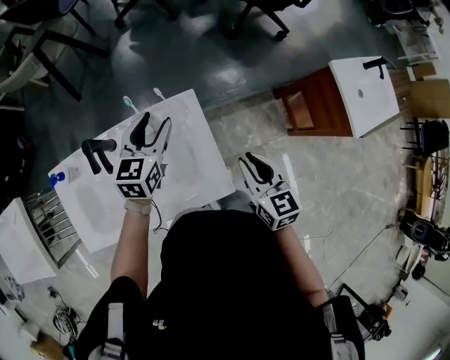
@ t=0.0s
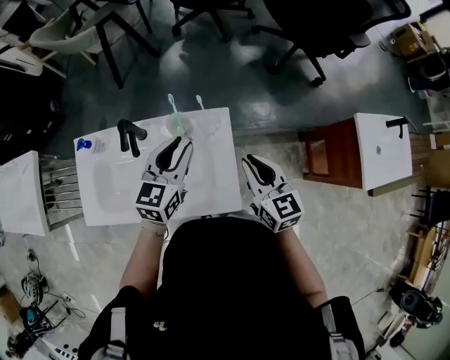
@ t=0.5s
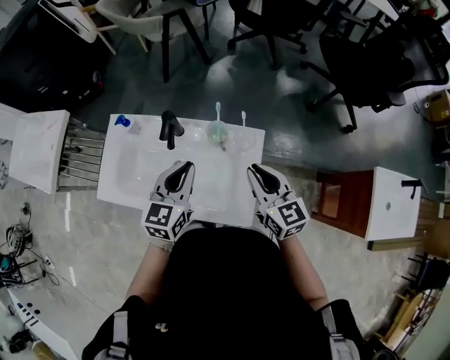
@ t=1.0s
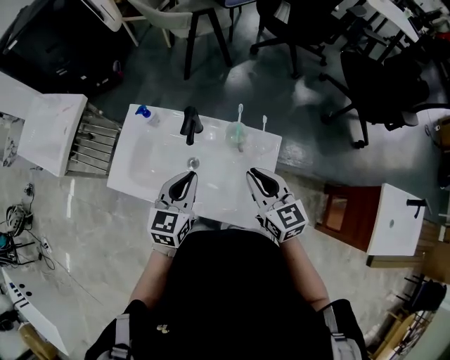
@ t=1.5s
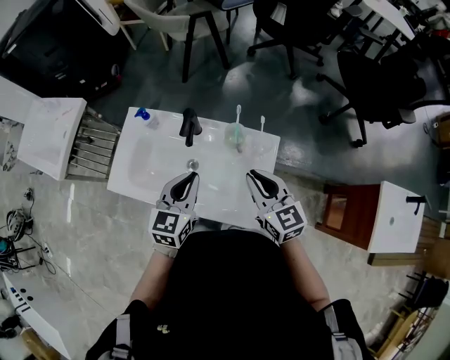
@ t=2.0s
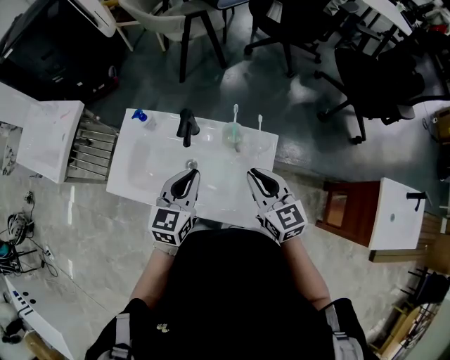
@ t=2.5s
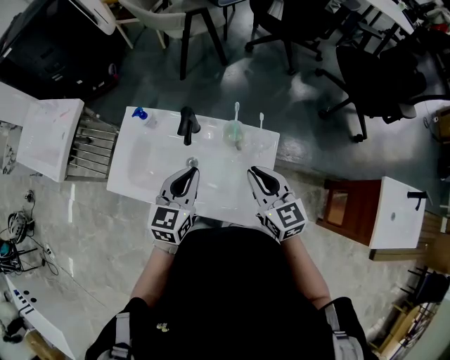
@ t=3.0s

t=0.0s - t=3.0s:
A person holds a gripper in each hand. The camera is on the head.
t=0.0s - t=1.5s: The right gripper changes place by approximately 20 cm, and changes its angle by some 40 degrees. Meanwhile the left gripper changes place by approximately 20 cm, swivels some 30 degrees, and closes its fingers.
t=1.5s - t=3.0s: The grippers stay close to where they were, moving slightly.

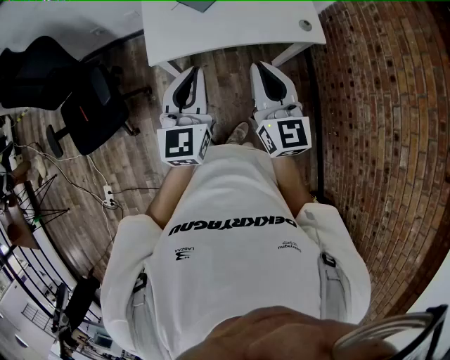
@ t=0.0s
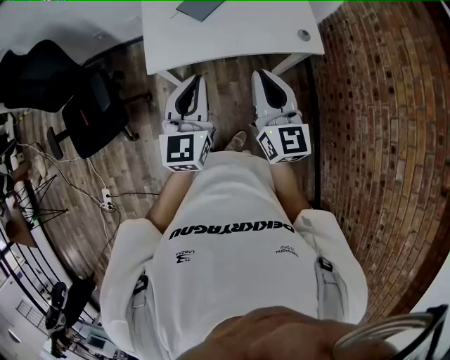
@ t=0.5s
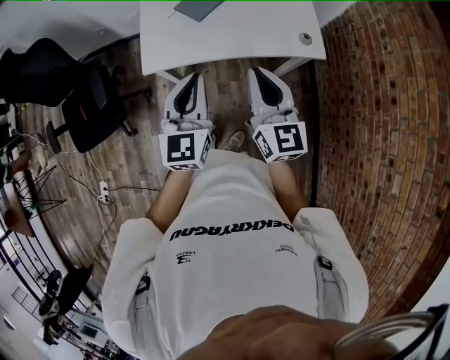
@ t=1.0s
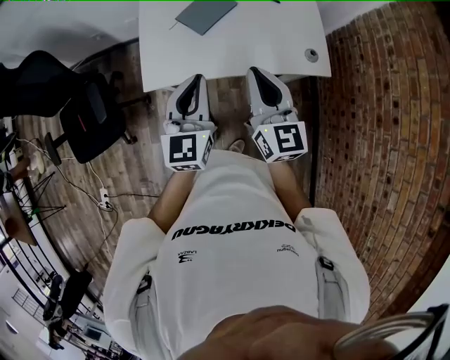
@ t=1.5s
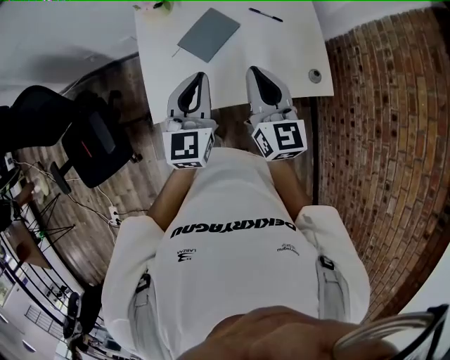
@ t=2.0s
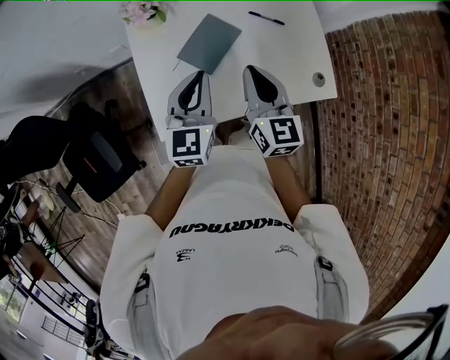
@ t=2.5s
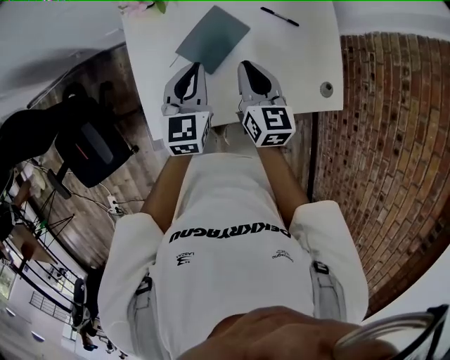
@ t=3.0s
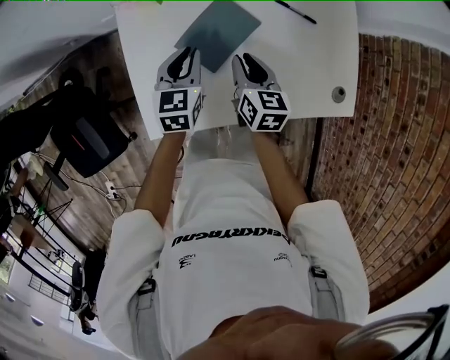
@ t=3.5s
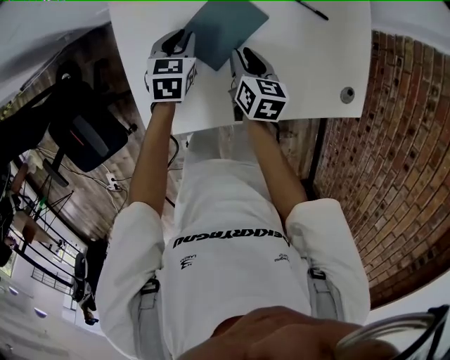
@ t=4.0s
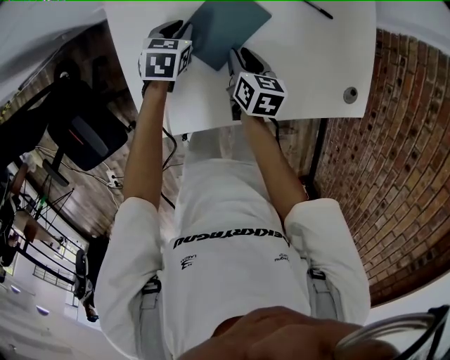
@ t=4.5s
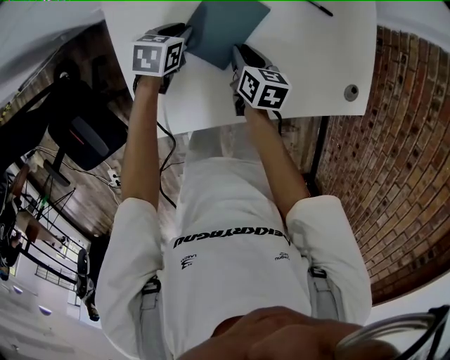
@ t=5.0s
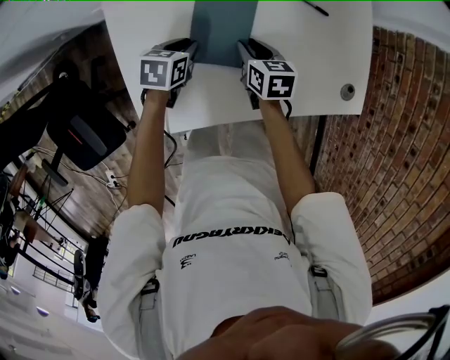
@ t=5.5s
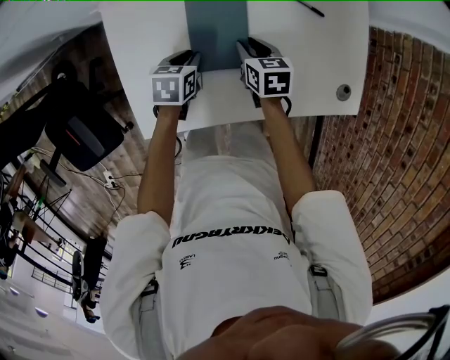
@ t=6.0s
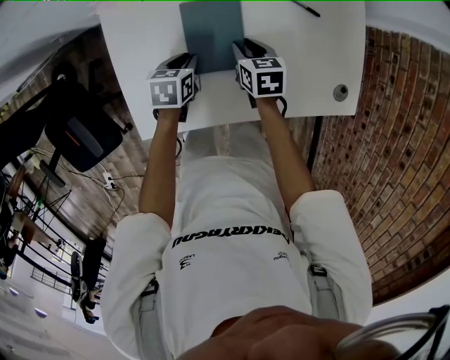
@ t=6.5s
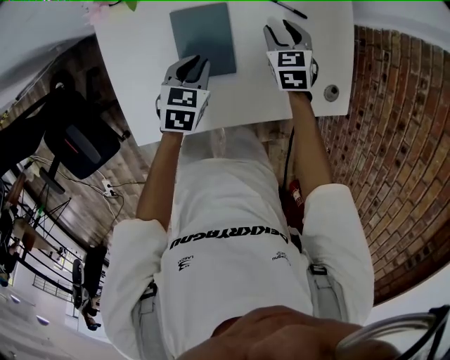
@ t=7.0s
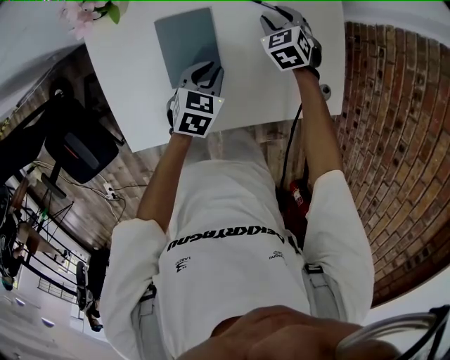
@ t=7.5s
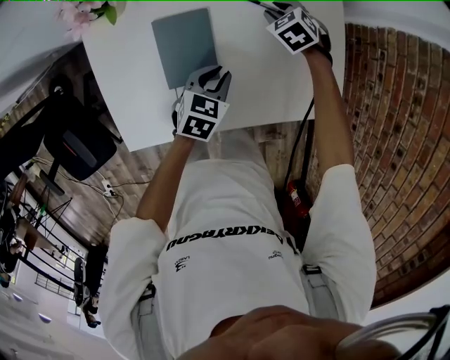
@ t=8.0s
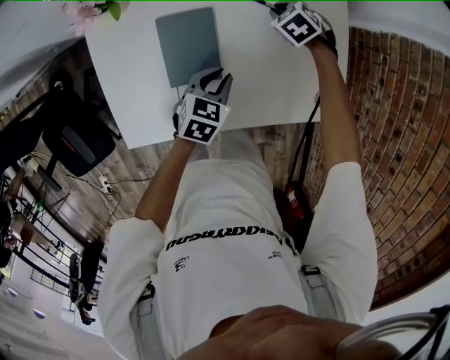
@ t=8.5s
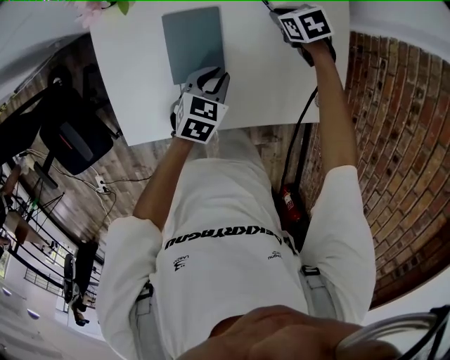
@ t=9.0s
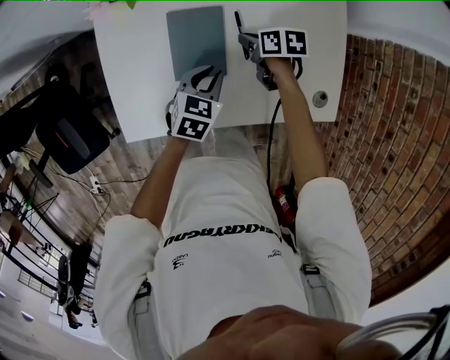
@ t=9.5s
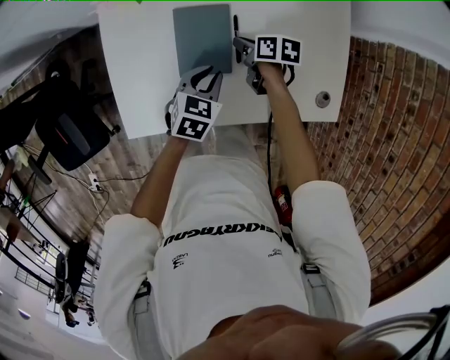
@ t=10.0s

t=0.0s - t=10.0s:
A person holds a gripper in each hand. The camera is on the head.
t=0.0s - t=2.0s: The two grippers go approximately 30 cm forward.
t=2.0s - t=4.0s: Both grippers travel together downward and forward, some 40 cm. The left gripper tips its fingers downward by some 40 degrees. Meanwhile the right gripper tilts its fingers some 40 degrees downward, and opens up.
t=4.0s - t=6.0s: The right gripper moves approximately 5 cm; the left gripper is displaced backward by about 5 cm, and changes its angle by some 20 degrees.
t=6.0s - t=8.0s: The right gripper goes about 20 cm forward and to the right, and rolls counterclockwise, seen from behind, by approximately 40 degrees, while the left gripper moves to the right, about 15 cm, and swivels about 20 degrees.
t=8.0s - t=10.0s: The left gripper shifts roughly 5 cm to the left. Meanwhile the right gripper is displaced to the left and backward by roughly 15 cm, and rotates around the line of its fingers by some 60 degrees, clockwise from behind.

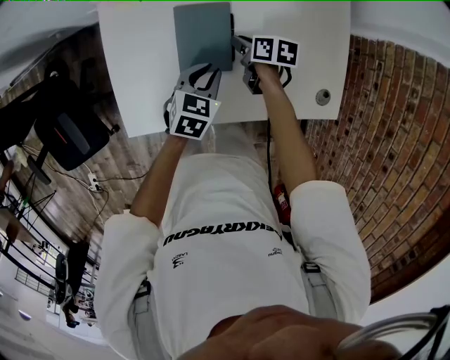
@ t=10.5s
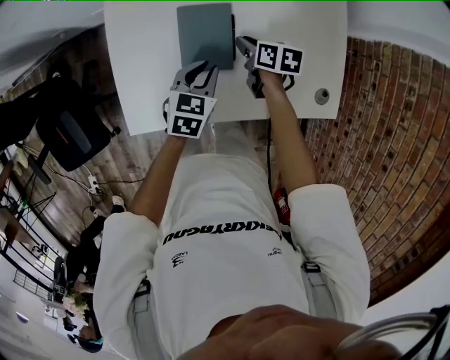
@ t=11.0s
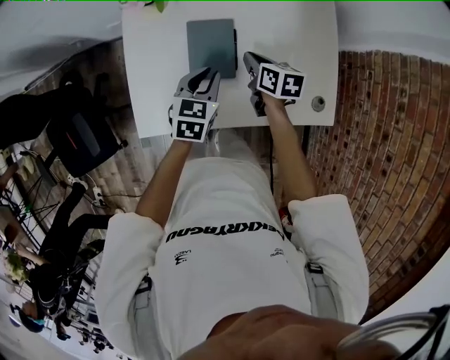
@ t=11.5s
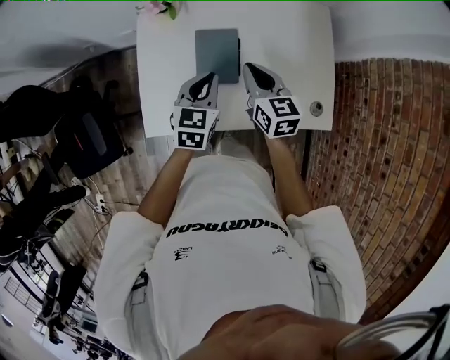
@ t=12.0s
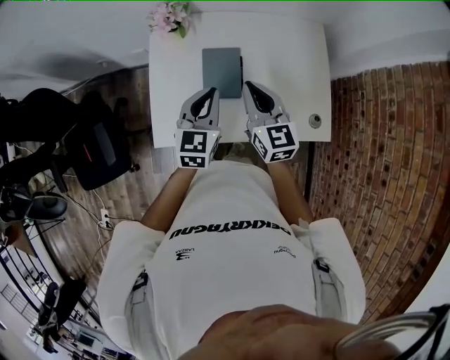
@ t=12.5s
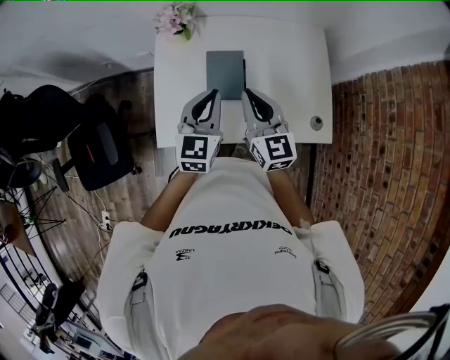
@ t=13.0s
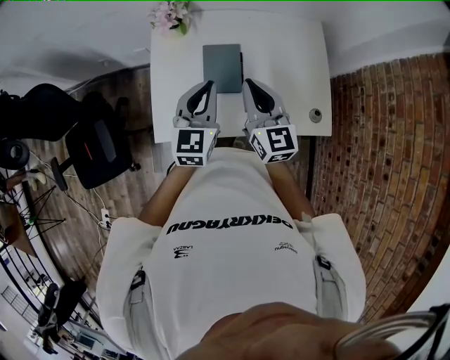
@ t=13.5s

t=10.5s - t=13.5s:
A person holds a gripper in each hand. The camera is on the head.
t=10.5s - t=12.0s: The left gripper travels upward by about 15 cm, and turns by approximately 20 degrees, while the right gripper heads upward, covering about 25 cm, and turns by about 50 degrees.
t=12.0s - t=13.5s: The left gripper shifts about 10 cm upward. Meanwhile the right gripper moves upward and backward, some 15 cm, and changes its angle by approximately 20 degrees.

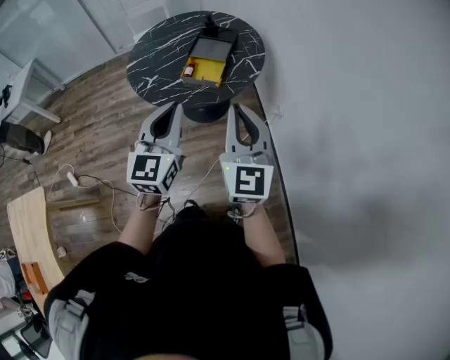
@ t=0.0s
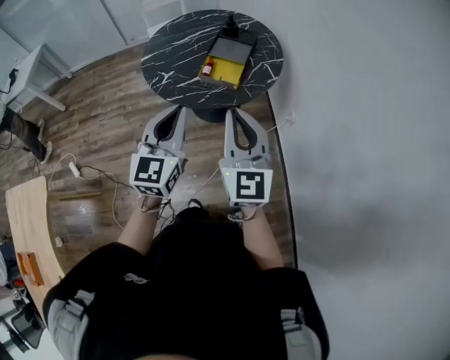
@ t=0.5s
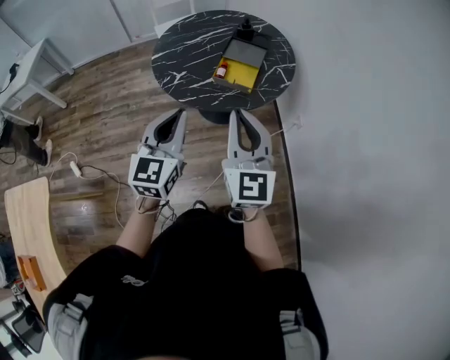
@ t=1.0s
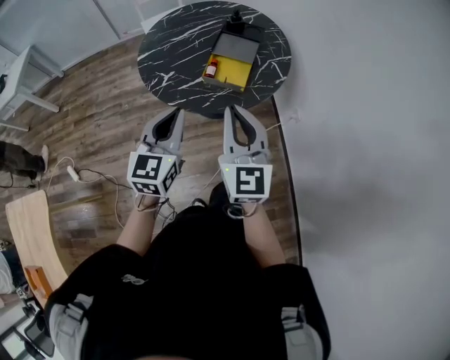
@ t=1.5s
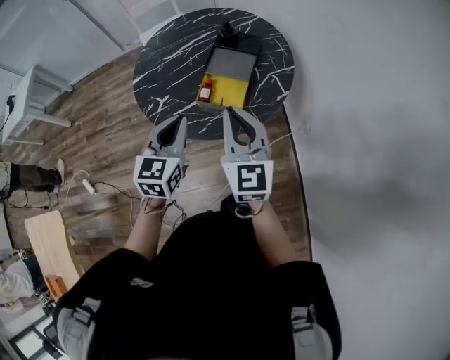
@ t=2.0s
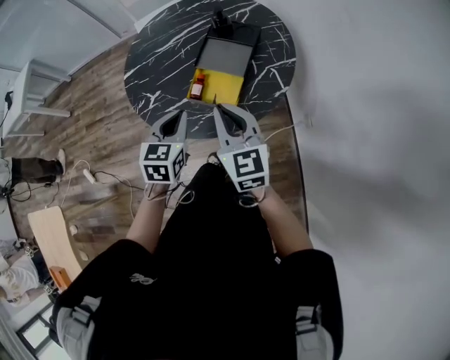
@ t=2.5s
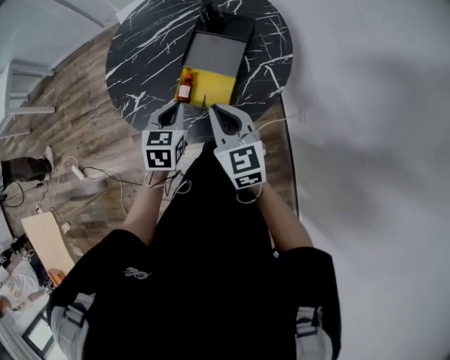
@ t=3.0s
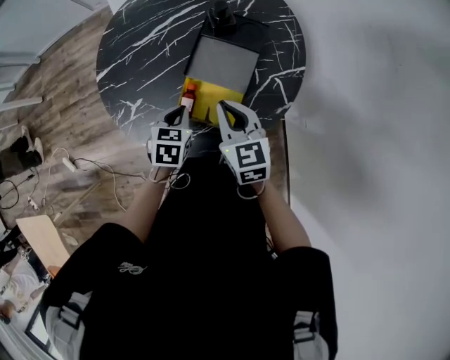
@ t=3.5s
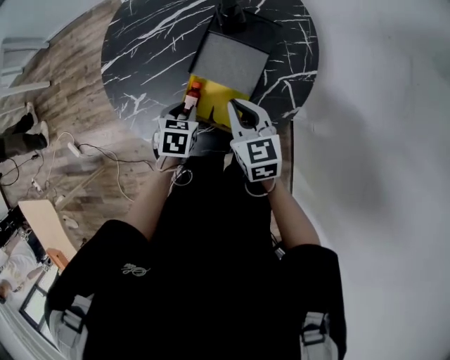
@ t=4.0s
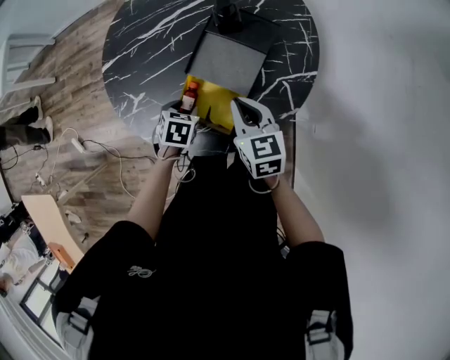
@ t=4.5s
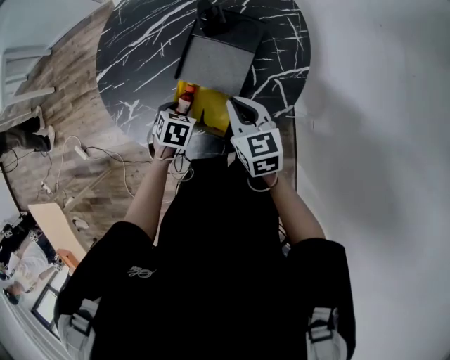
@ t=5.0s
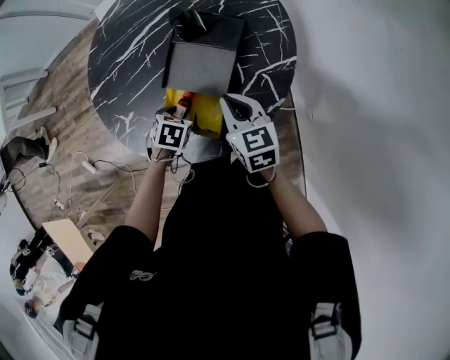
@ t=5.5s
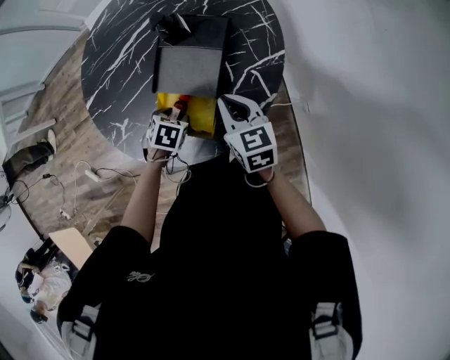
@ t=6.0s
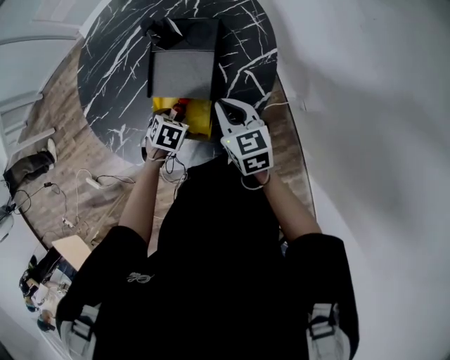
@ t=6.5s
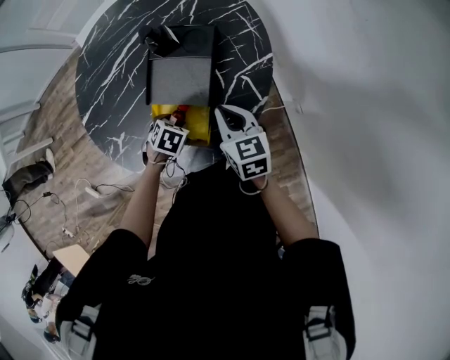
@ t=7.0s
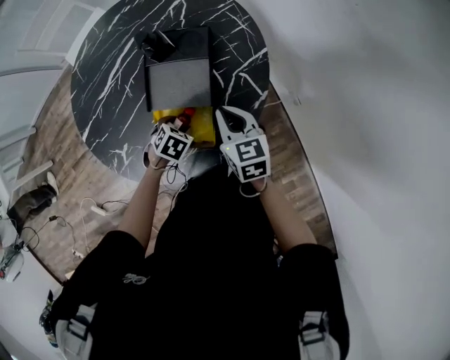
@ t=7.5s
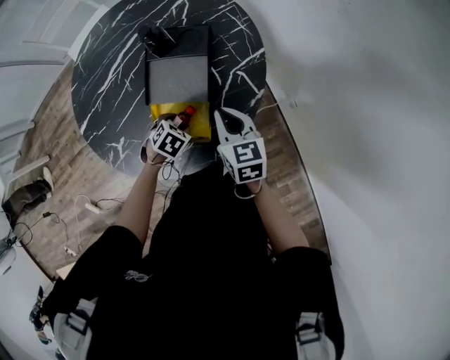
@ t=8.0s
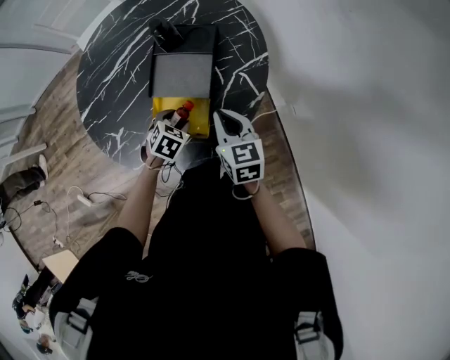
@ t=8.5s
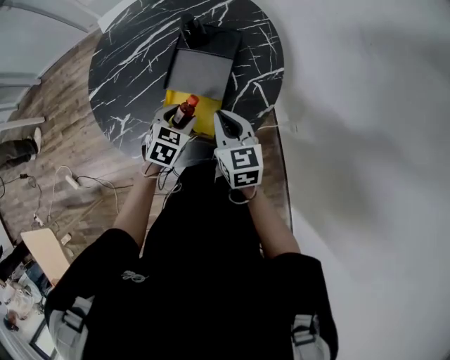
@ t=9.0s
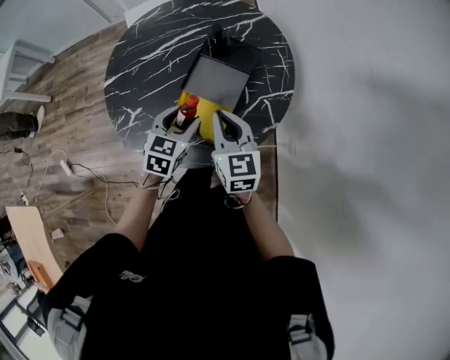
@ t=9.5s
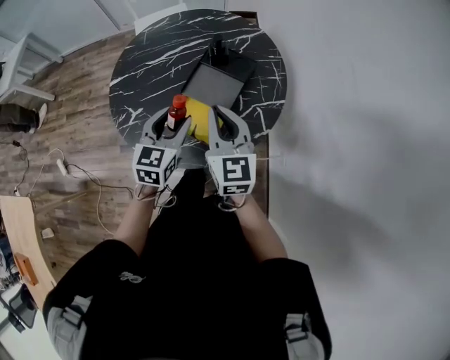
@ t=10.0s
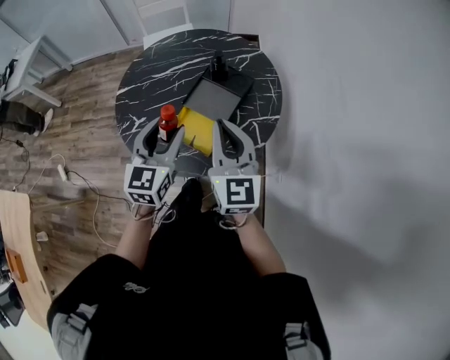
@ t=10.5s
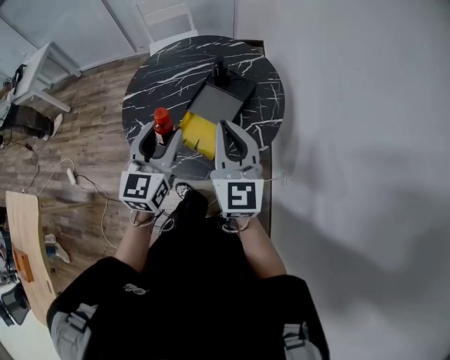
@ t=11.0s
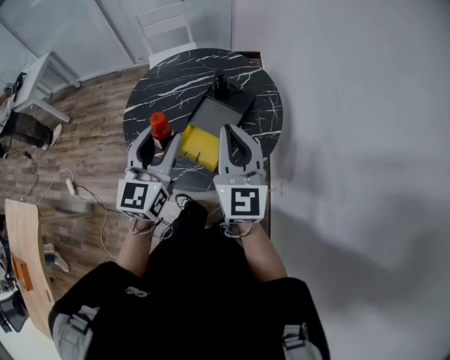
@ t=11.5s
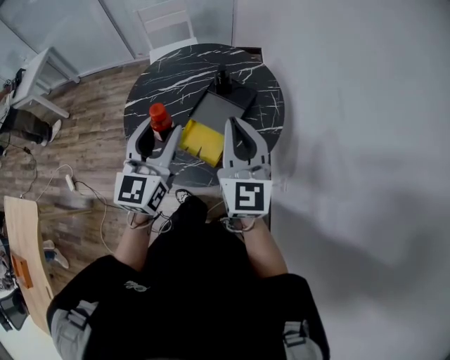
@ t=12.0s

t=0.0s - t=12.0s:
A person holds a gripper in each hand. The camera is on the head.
t=0.0s - t=2.0s: The left gripper goes some 25 cm forward and downward. The right gripper shifts about 20 cm forward.
t=2.0s - t=4.0s: The two grippers go approximately 30 cm downward and forward. The right gripper swivels about 40 degrees. The left gripper tilts its fingers roughly 40 degrees downward.
t=4.0s - t=6.0s: The left gripper ends up approximately 5 cm from where it was, rotates roughly 20 degrees, and opens. The right gripper ends up roughly 10 cm from where it was.
t=6.0s - t=8.0s: The left gripper changes its angle by approximately 30 degrees.
t=8.0s - t=10.0s: The two grippers go about 20 cm upward. The left gripper angles its fingers upward, by roughly 50 degrees. Meanwhile the right gripper turns by about 30 degrees.
t=10.0s - t=12.0s: The grippers both shift upward by approximately 15 cm. The left gripper turns by about 20 degrees.
